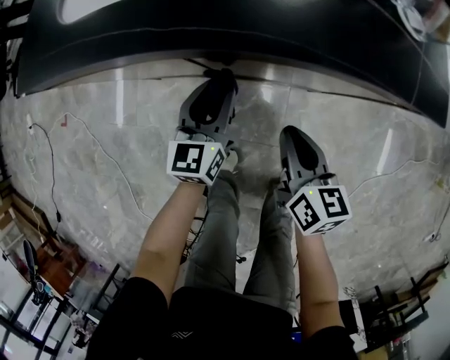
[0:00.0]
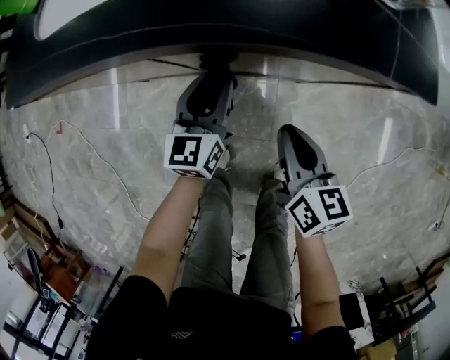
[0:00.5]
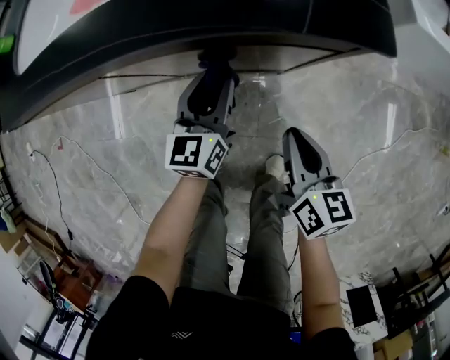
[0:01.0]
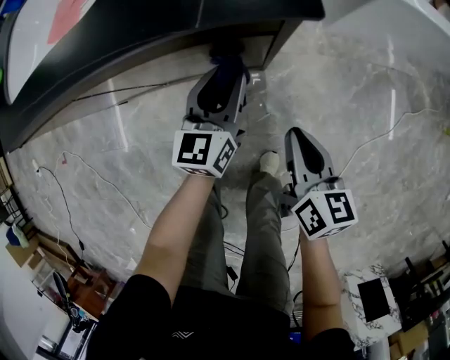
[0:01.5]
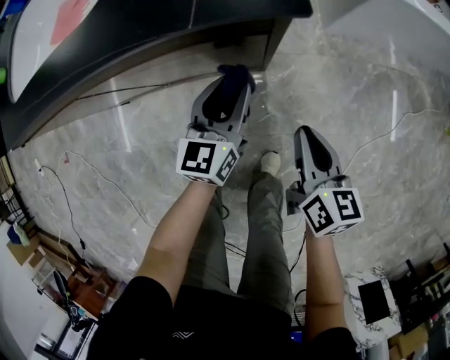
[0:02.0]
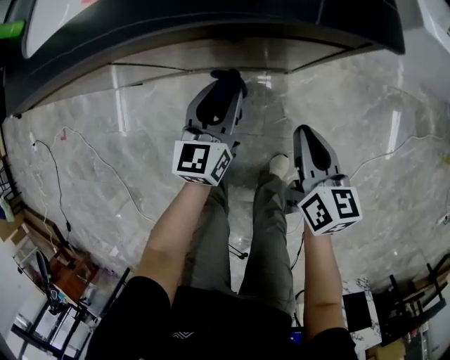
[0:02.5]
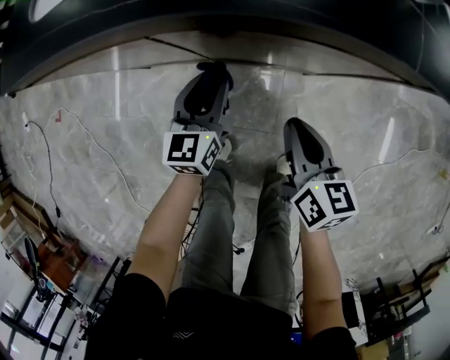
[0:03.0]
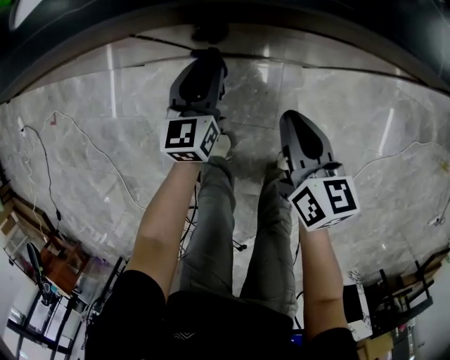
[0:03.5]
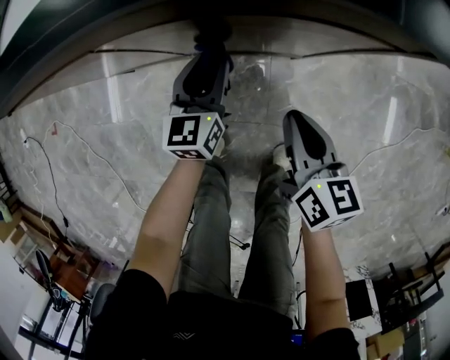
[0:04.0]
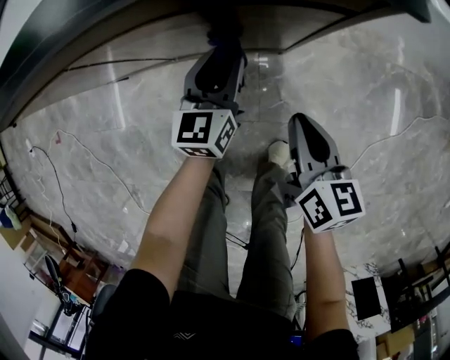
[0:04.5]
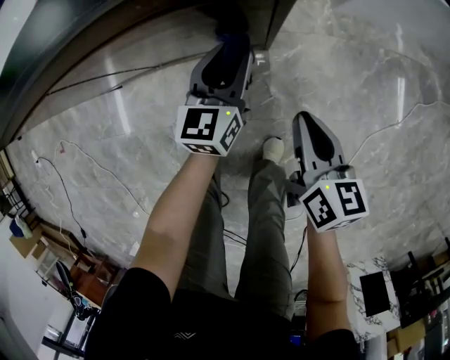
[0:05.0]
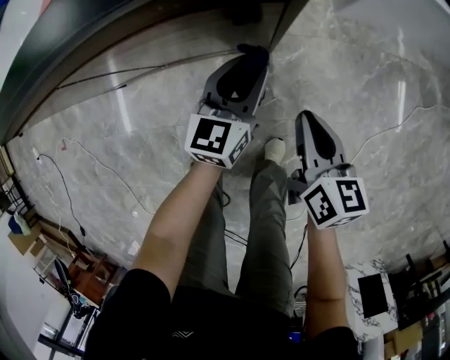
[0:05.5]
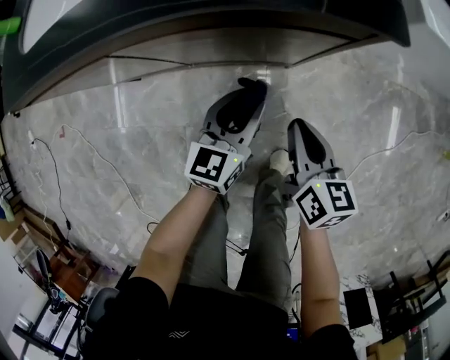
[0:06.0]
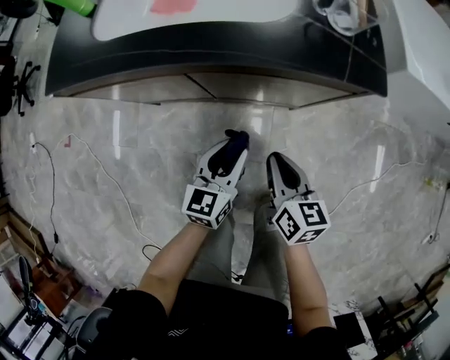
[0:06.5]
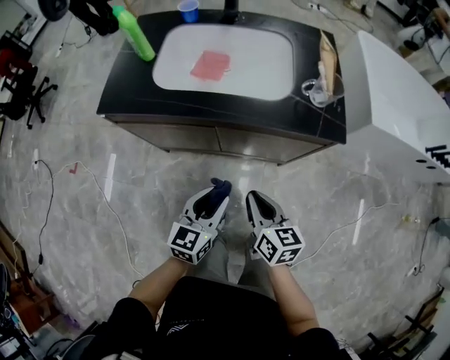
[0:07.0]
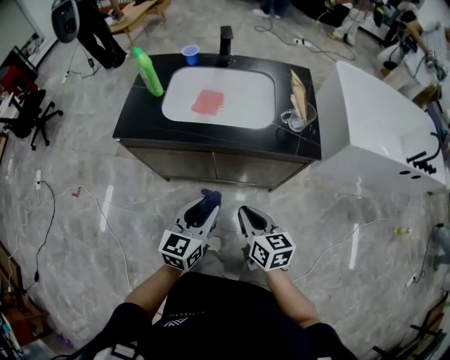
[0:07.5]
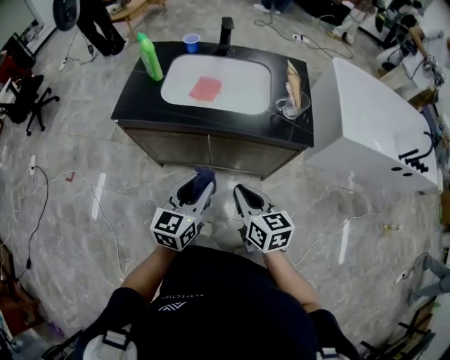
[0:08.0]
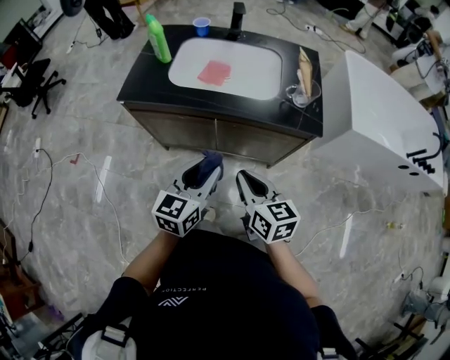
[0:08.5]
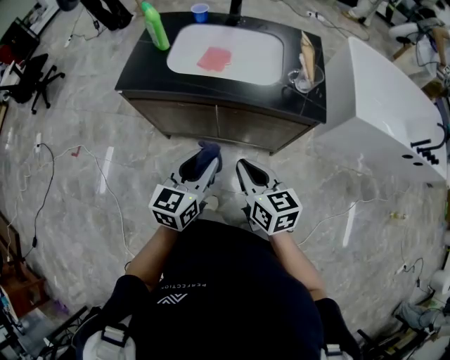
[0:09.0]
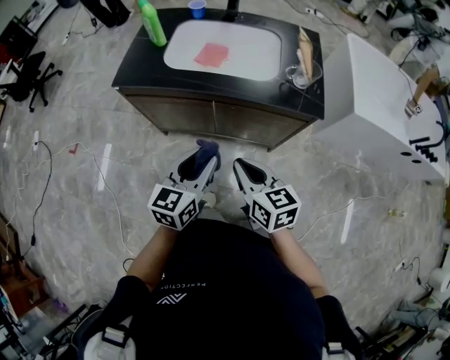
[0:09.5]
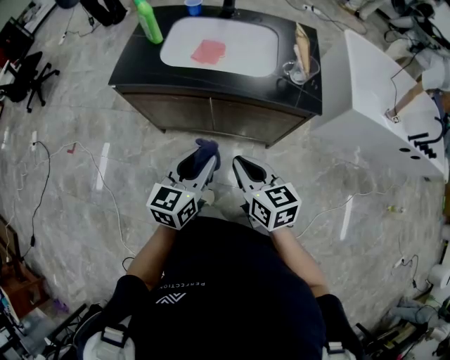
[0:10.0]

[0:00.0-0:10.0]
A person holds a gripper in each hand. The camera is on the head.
0:00.0 to 0:02.0: Both grippers move to the right, approximately 25 cm.
0:02.0 to 0:04.0: The right gripper travels to the left by roughly 15 cm; the left gripper travels to the left and downward by some 20 cm.
0:04.0 to 0:06.0: The left gripper is displaced to the right, backward and upward by approximately 15 cm. The right gripper goes to the right and returns, about 15 cm each way.
0:06.0 to 0:08.0: Both grippers travel together upward and to the left, some 35 cm. The right gripper turns by about 30 degrees.
0:08.0 to 0:10.0: There are only small adjustments of the grippers.

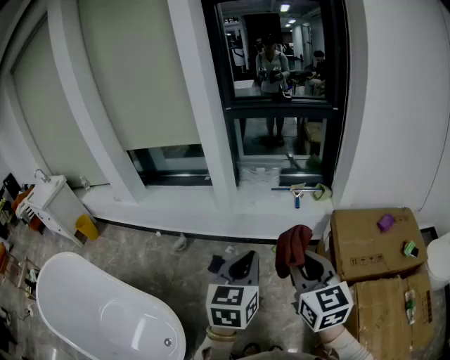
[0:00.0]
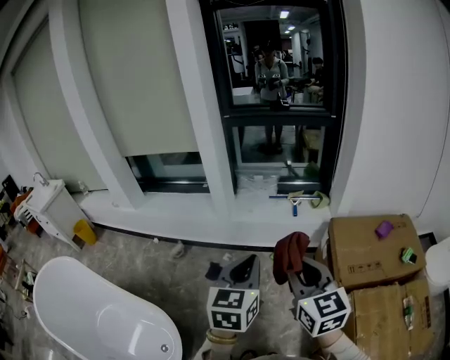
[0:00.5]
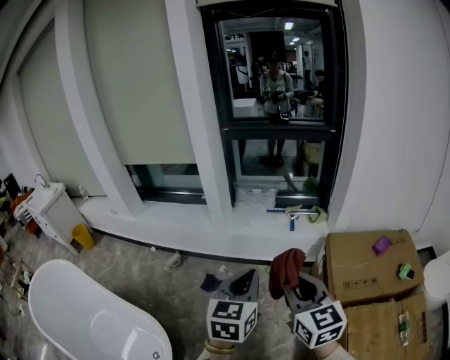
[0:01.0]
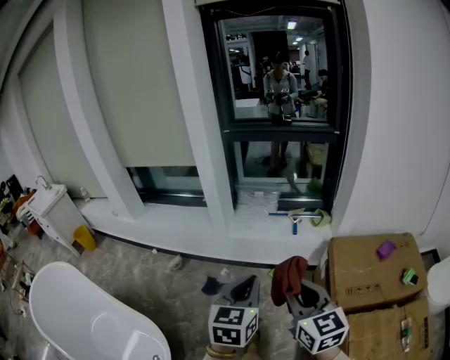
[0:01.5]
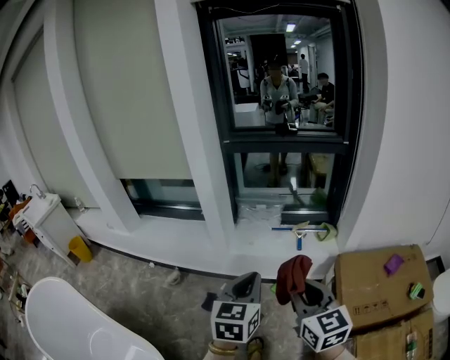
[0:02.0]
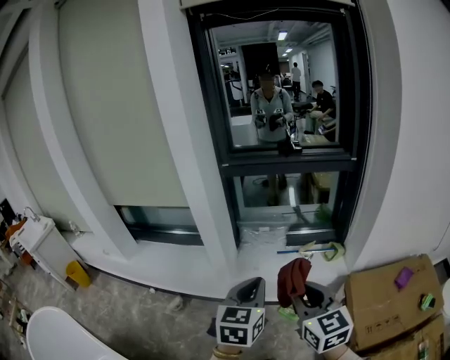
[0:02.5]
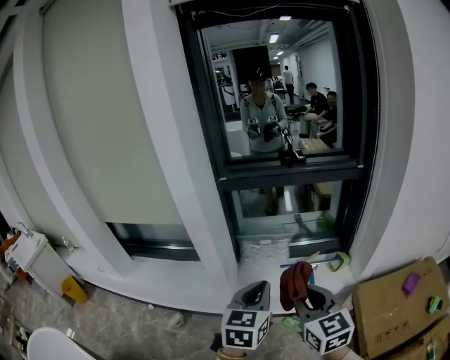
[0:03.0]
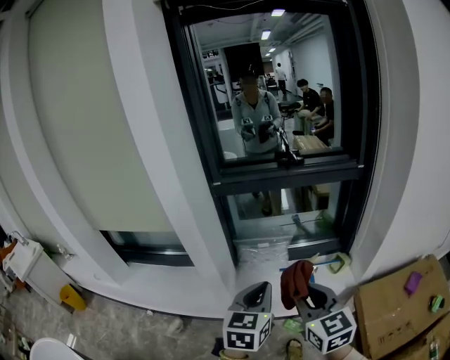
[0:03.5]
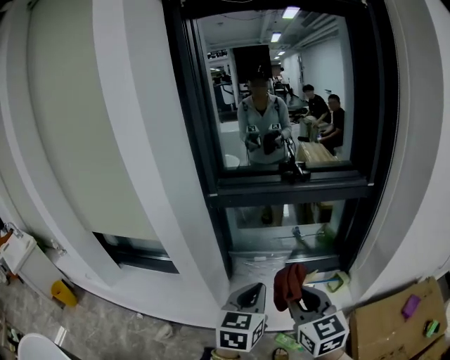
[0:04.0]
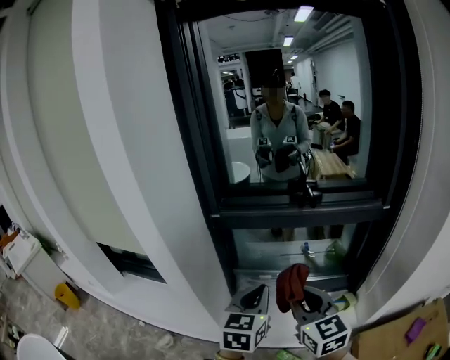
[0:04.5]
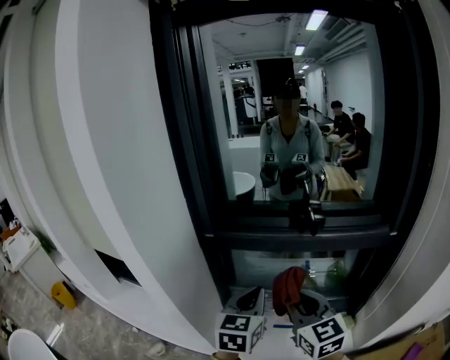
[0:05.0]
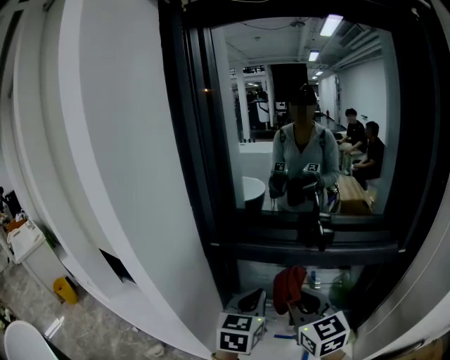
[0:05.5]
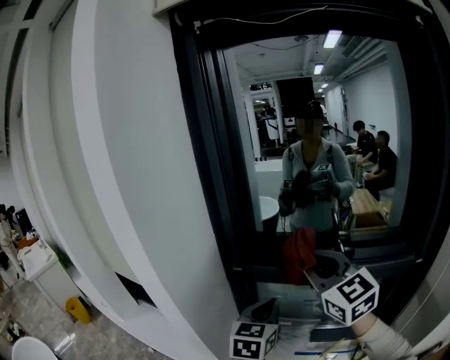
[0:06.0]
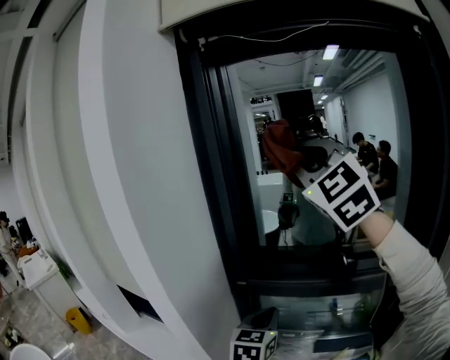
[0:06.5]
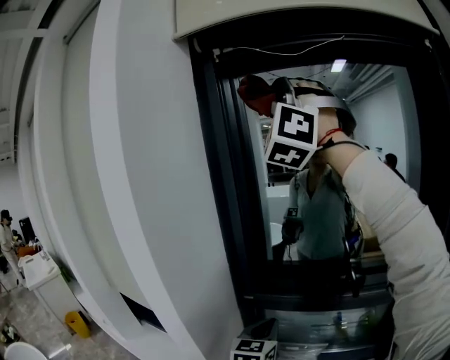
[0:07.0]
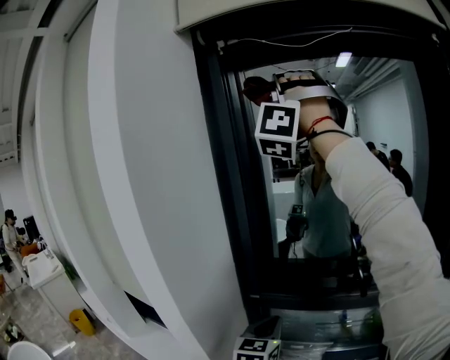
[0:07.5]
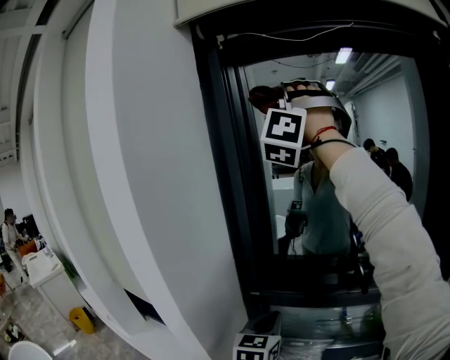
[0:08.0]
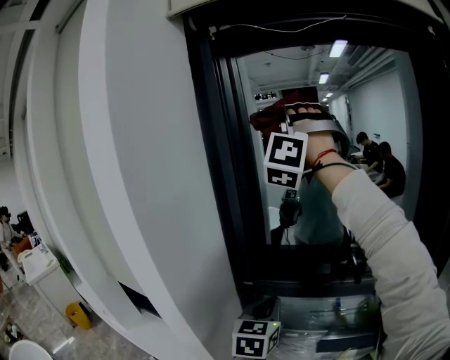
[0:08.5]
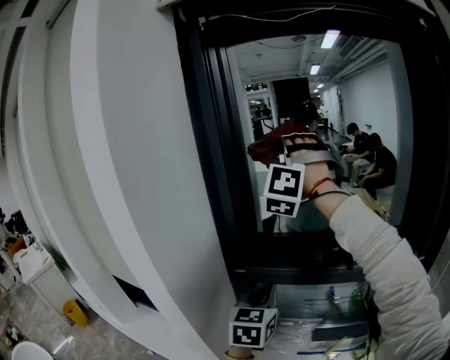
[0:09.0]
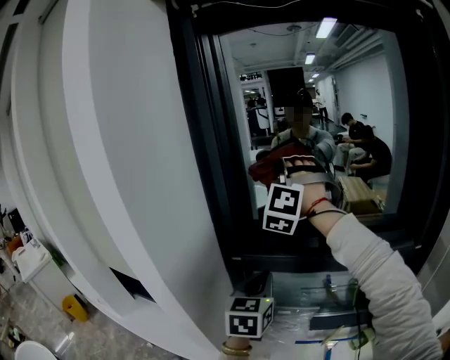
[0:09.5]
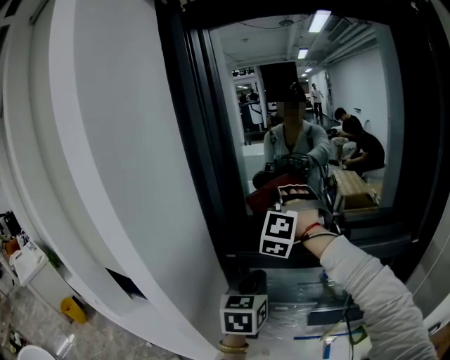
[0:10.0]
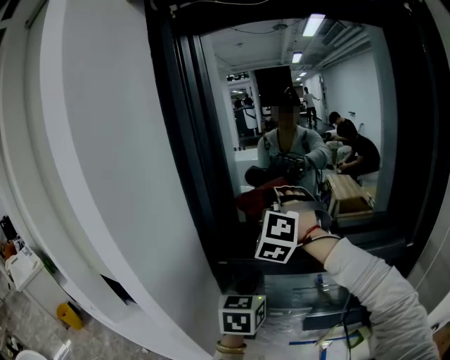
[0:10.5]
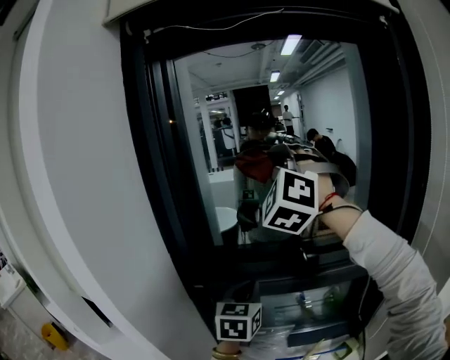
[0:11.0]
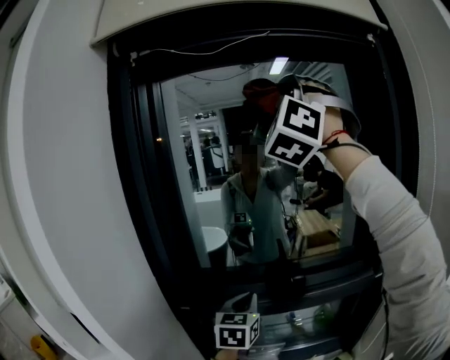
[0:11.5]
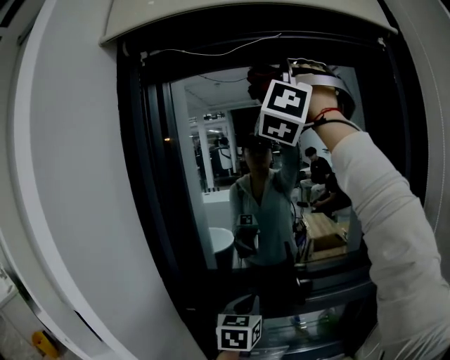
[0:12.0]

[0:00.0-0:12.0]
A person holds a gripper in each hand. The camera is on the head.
0:00.0 to 0:02.0: Both grippers travel together forward, roughly 15 cm.
0:02.0 to 0:04.0: Both grippers move forward, some 35 cm.
0:04.0 to 0:06.0: The left gripper moves forward, approximately 25 cm. The right gripper shifts about 35 cm forward and upward, and changes its angle by some 30 degrees.
0:06.0 to 0:08.0: The left gripper heads to the left, covering roughly 5 cm, while the right gripper travels upward by about 40 cm, and rotates around the line of its fingers by about 80 degrees, counterclockwise from behind.
0:08.0 to 0:10.0: The right gripper goes about 40 cm downward, and tips its fingers downward by about 40 degrees.
0:10.0 to 0:12.0: The right gripper moves upward and to the right, some 50 cm, and tips its fingers upward by some 40 degrees, while the left gripper moves to the right and forward, about 15 cm.

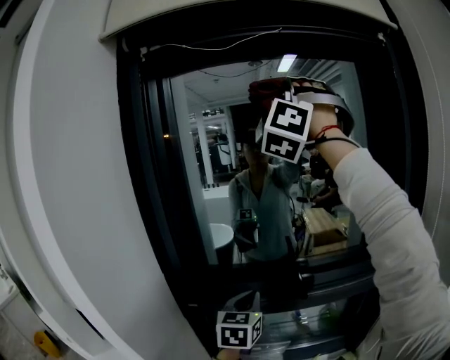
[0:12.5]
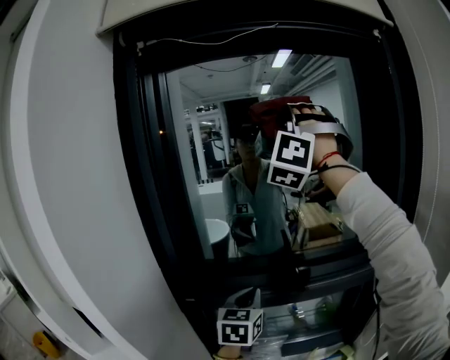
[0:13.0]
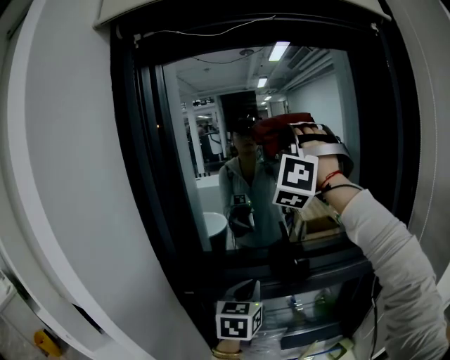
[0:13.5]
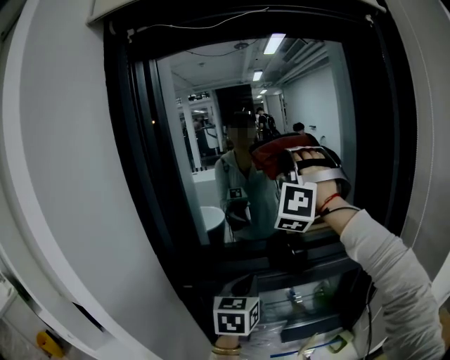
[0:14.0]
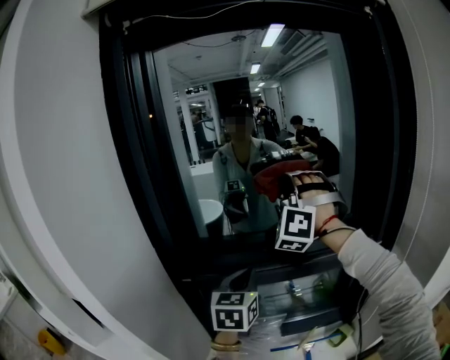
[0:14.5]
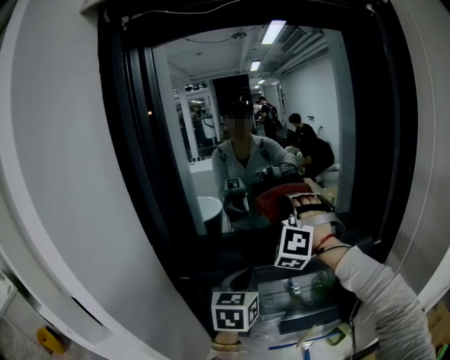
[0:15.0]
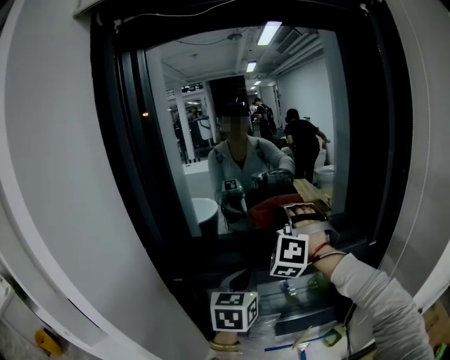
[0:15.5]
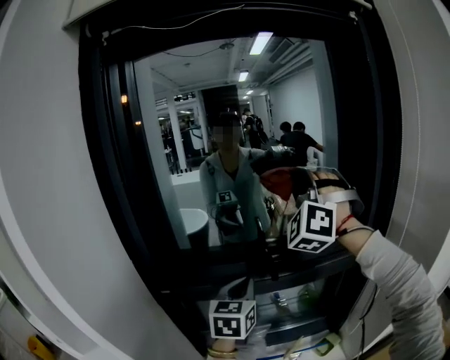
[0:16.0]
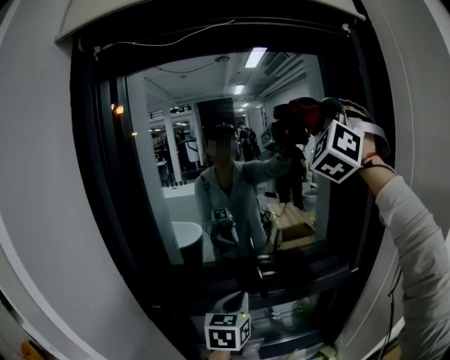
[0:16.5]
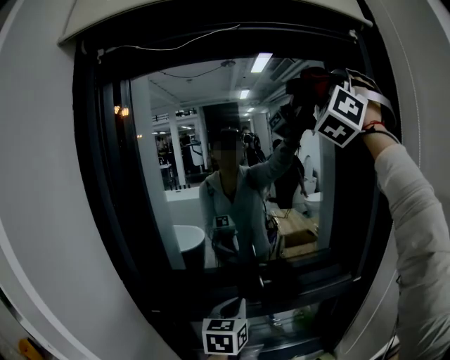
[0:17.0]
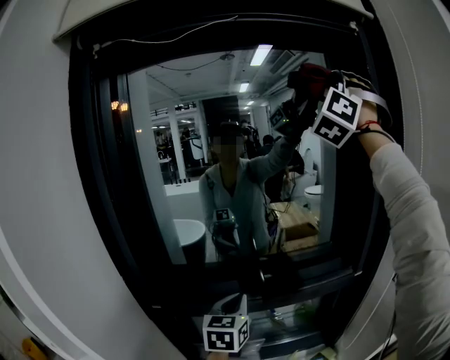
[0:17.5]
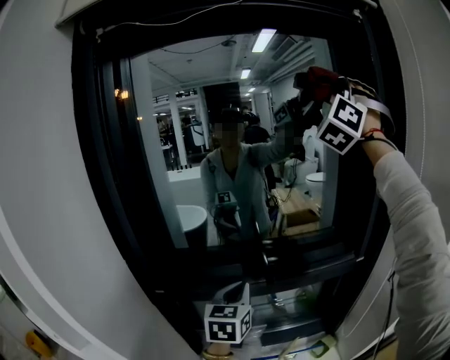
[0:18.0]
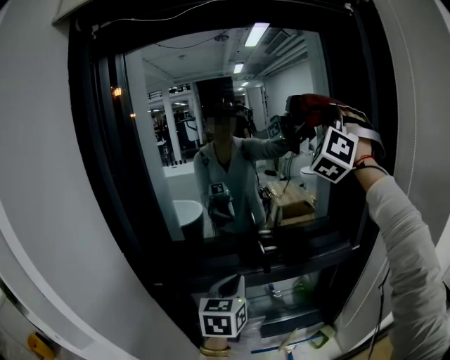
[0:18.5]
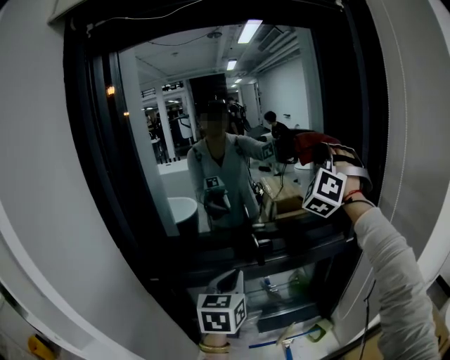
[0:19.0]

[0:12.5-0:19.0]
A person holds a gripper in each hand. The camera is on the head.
0:12.5 to 0:14.5: The right gripper goes approximately 30 cm downward, and swivels some 20 degrees.
0:14.5 to 0:17.0: The right gripper is displaced upward and to the right by about 40 cm, and rotates some 30 degrees. The left gripper travels to the right by about 5 cm.
0:17.0 to 0:19.0: The right gripper travels downward by approximately 30 cm, and changes its angle by about 20 degrees.
